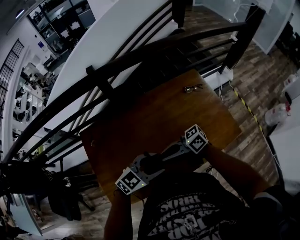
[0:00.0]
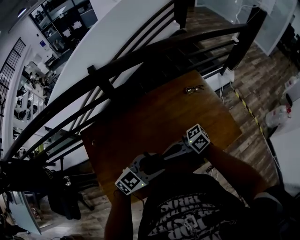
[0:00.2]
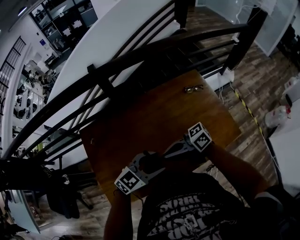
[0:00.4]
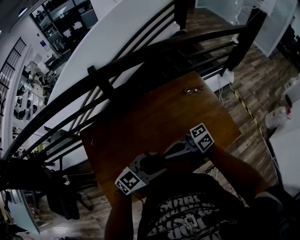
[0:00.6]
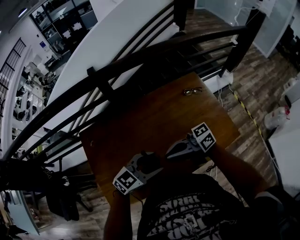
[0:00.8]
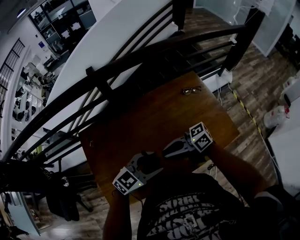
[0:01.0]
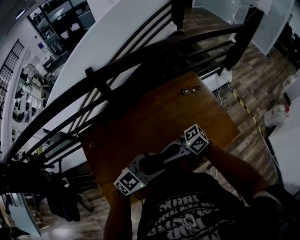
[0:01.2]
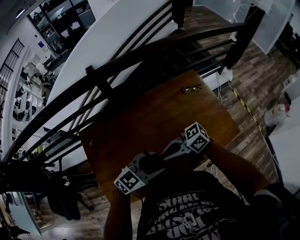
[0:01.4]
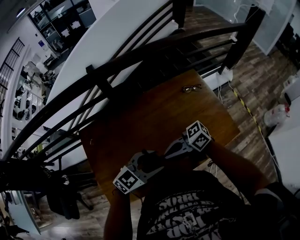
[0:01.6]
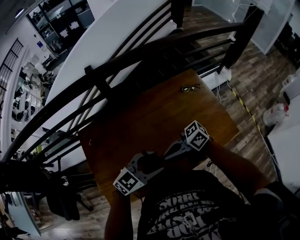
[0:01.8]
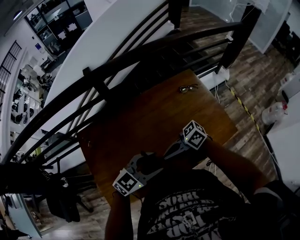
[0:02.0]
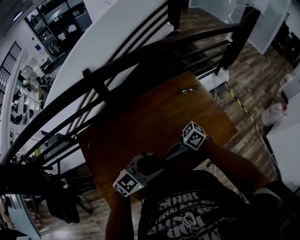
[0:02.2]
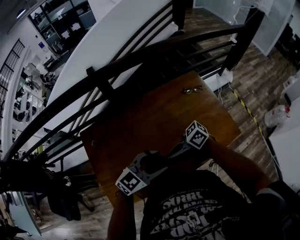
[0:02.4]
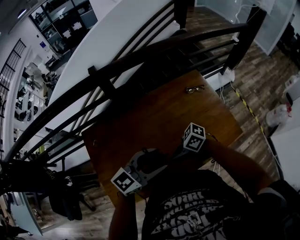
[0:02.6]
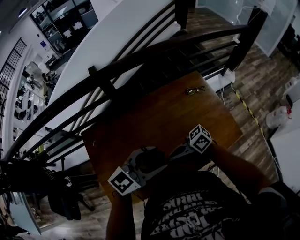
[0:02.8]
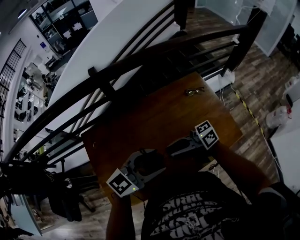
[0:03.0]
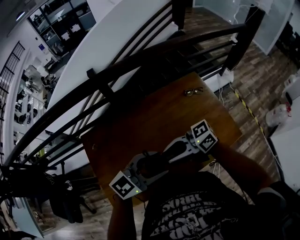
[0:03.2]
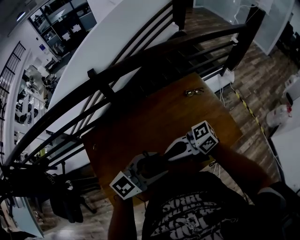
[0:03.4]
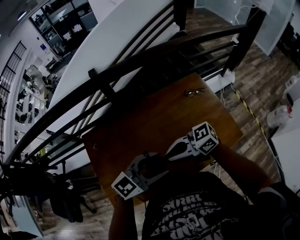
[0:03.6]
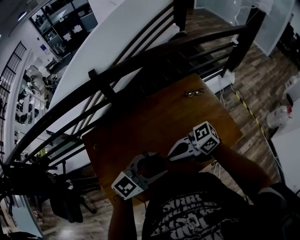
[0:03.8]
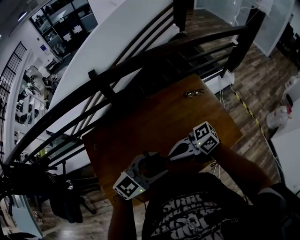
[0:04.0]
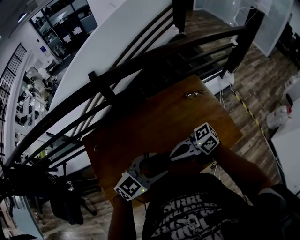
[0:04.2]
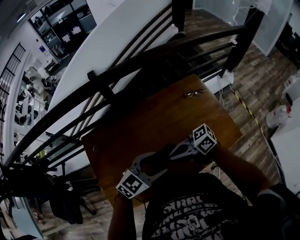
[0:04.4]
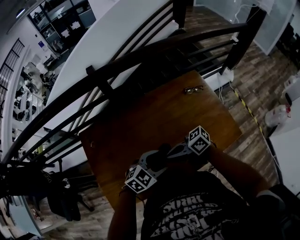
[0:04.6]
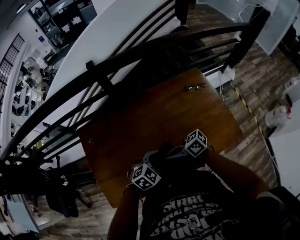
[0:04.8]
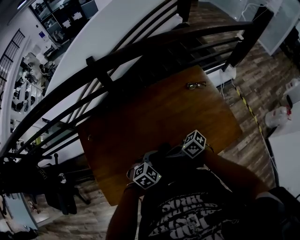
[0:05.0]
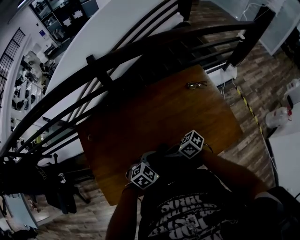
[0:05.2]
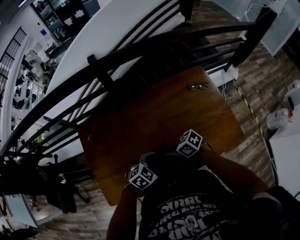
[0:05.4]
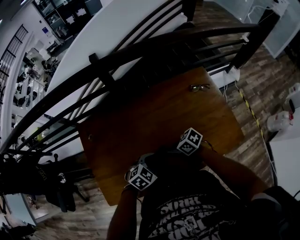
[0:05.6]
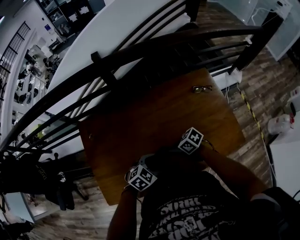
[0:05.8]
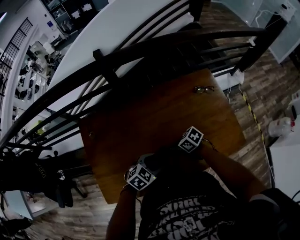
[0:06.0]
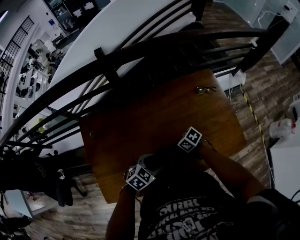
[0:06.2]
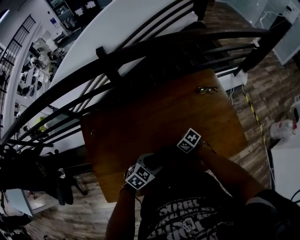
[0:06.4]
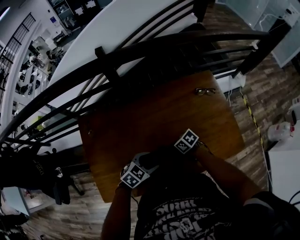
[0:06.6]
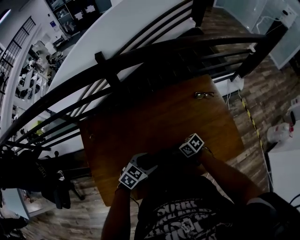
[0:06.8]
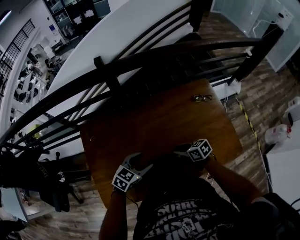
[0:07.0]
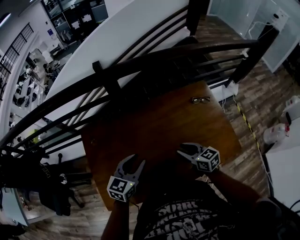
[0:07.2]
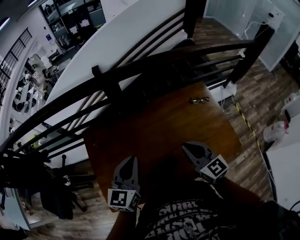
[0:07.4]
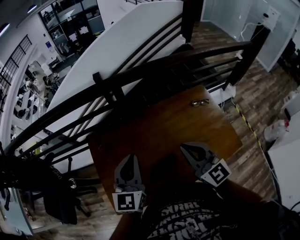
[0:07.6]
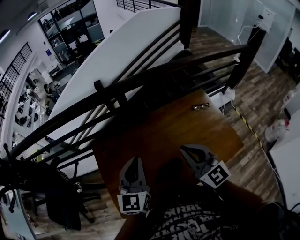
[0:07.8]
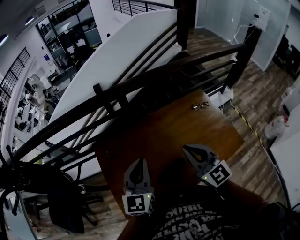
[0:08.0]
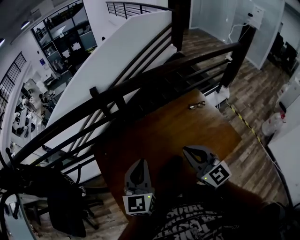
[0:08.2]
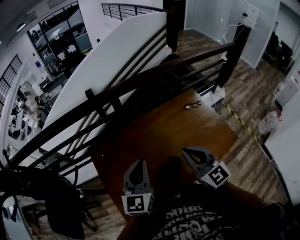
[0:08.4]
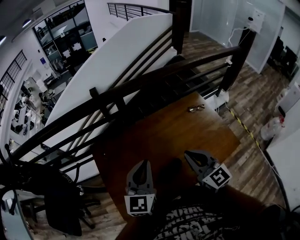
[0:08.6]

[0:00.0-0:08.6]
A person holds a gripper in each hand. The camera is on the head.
0:01.4 to 0:02.8: The left gripper moves upward, about 10 cm.
0:02.8 to 0:04.4: The left gripper moves downward, approximately 10 cm. Meanwhile the right gripper goes upward and returns, approximately 10 cm each way, and opens, then closes again.
0:04.4 to 0:05.8: The grippers both shift downward by roughly 15 cm. The left gripper swivels about 30 degrees. Meanwhile the right gripper tilts its fingers roughly 30 degrees downward.
0:05.8 to 0:07.2: Both grippers move upward, some 10 cm. The right gripper changes its angle by about 40 degrees, and opens, while the left gripper turns by about 40 degrees.
0:07.2 to 0:08.6: The grippers both shift upward by roughly 15 cm. The left gripper rotates approximately 20 degrees, and closes its fingers, while the right gripper swivels some 40 degrees, and closes its fingers.

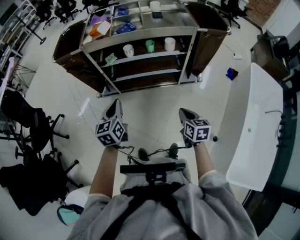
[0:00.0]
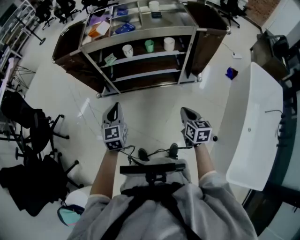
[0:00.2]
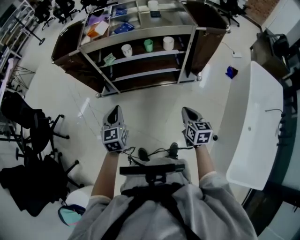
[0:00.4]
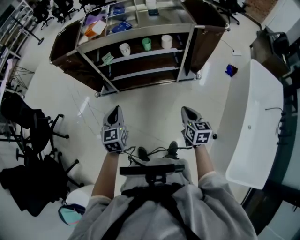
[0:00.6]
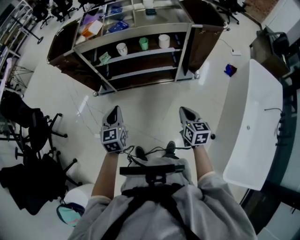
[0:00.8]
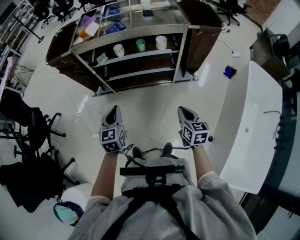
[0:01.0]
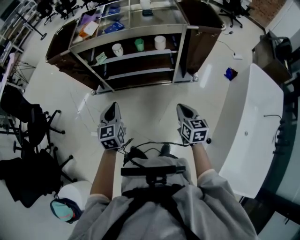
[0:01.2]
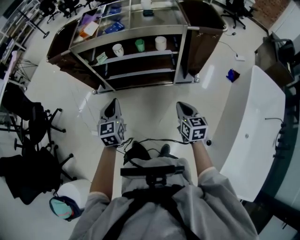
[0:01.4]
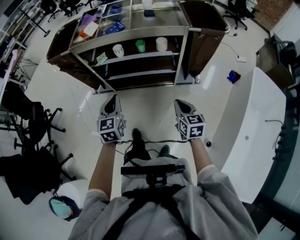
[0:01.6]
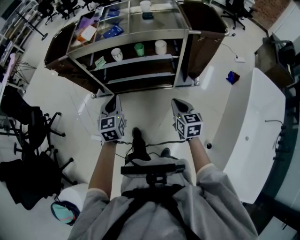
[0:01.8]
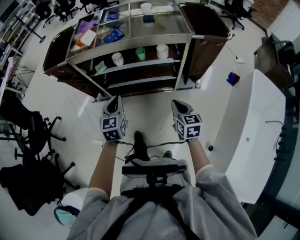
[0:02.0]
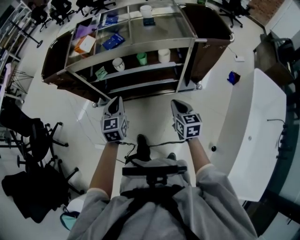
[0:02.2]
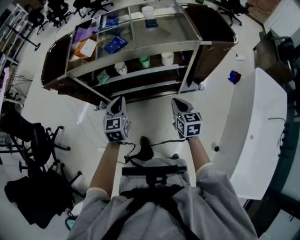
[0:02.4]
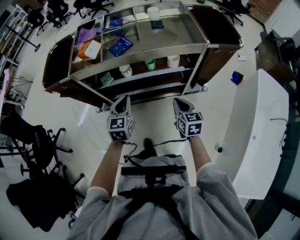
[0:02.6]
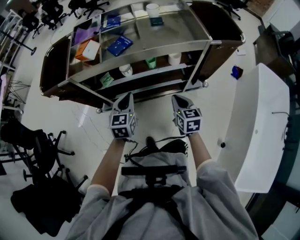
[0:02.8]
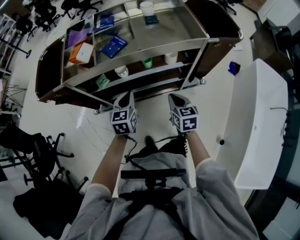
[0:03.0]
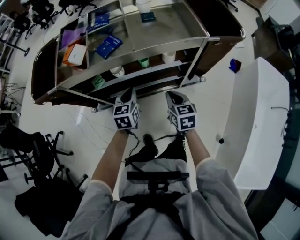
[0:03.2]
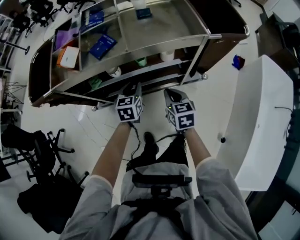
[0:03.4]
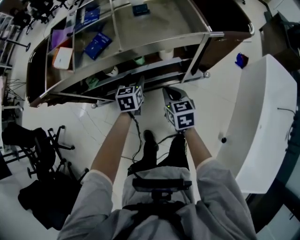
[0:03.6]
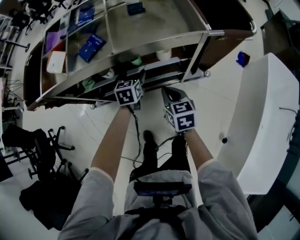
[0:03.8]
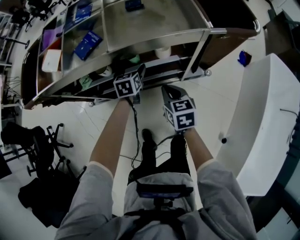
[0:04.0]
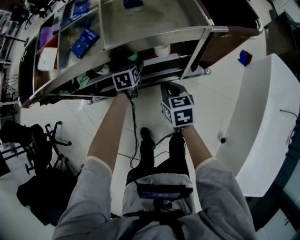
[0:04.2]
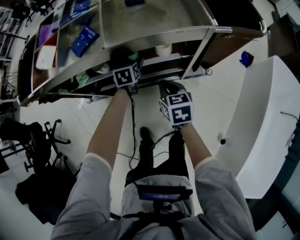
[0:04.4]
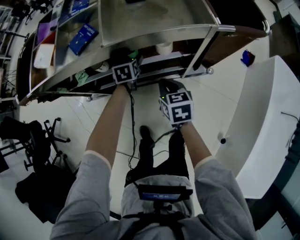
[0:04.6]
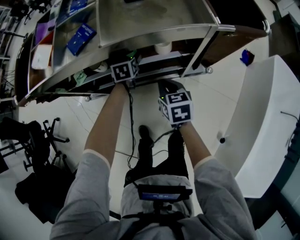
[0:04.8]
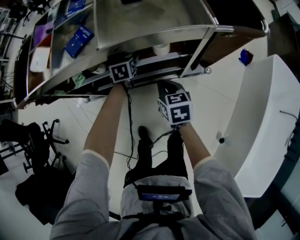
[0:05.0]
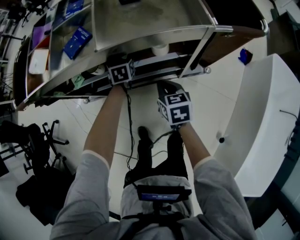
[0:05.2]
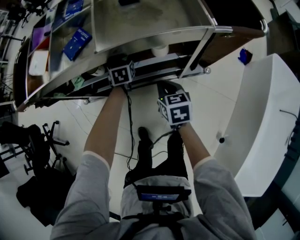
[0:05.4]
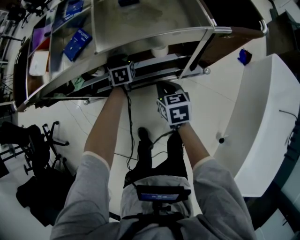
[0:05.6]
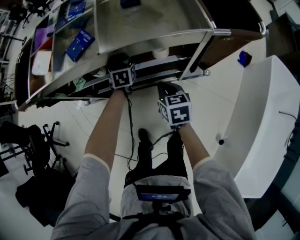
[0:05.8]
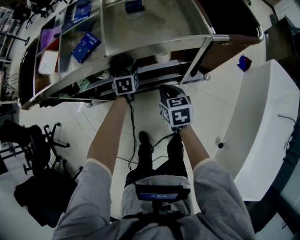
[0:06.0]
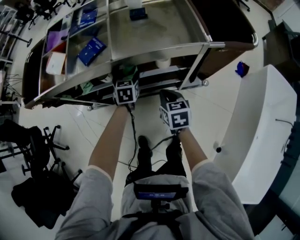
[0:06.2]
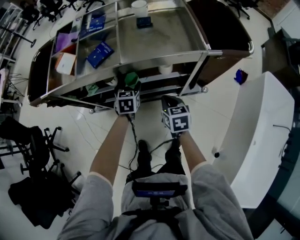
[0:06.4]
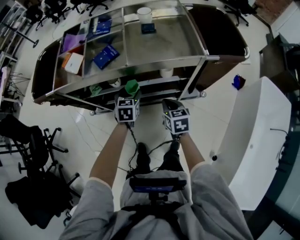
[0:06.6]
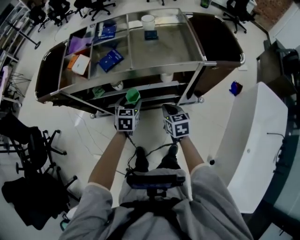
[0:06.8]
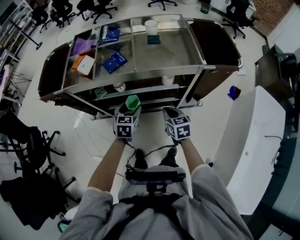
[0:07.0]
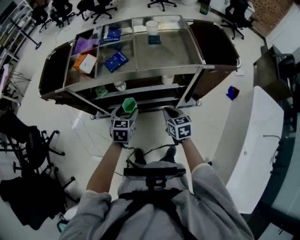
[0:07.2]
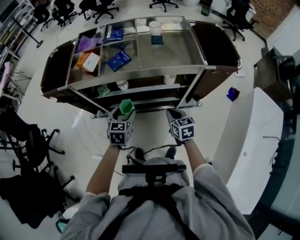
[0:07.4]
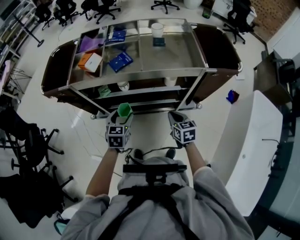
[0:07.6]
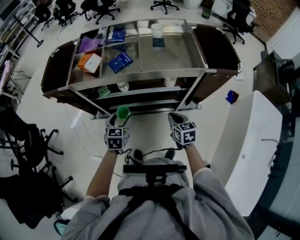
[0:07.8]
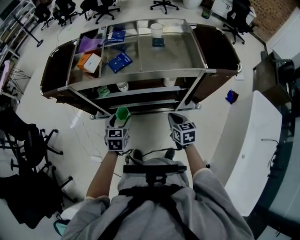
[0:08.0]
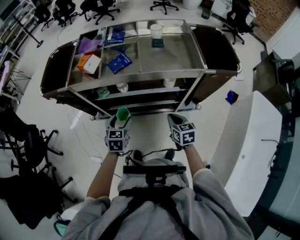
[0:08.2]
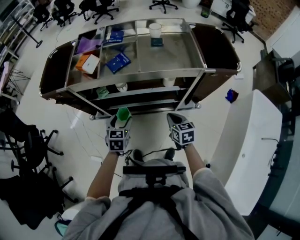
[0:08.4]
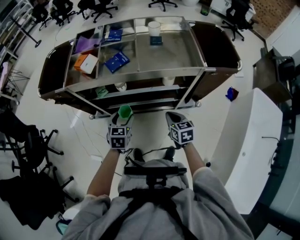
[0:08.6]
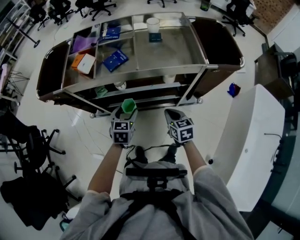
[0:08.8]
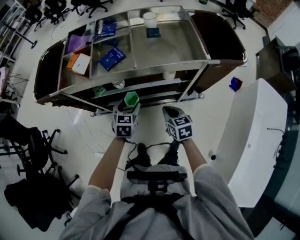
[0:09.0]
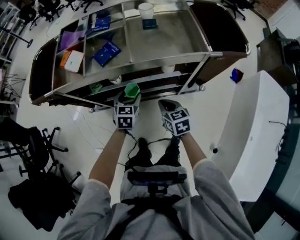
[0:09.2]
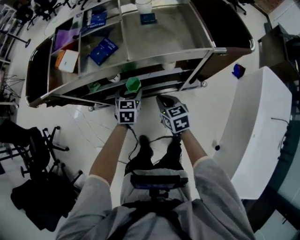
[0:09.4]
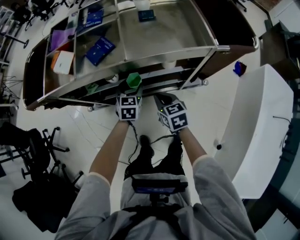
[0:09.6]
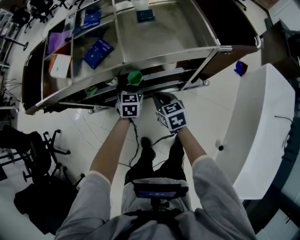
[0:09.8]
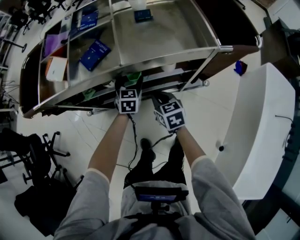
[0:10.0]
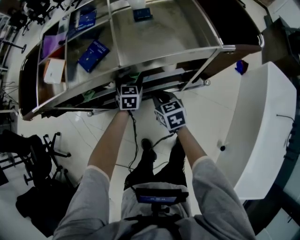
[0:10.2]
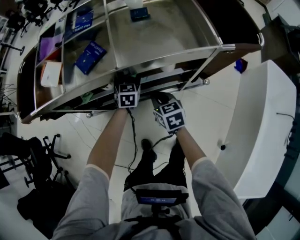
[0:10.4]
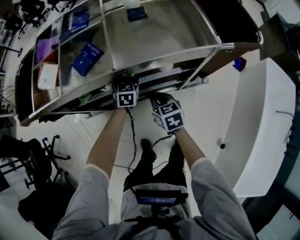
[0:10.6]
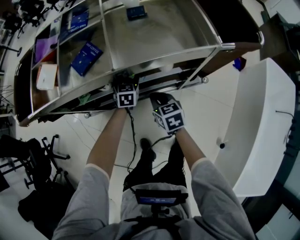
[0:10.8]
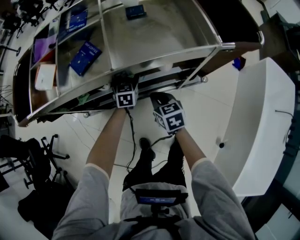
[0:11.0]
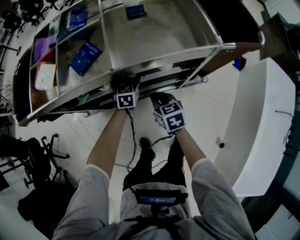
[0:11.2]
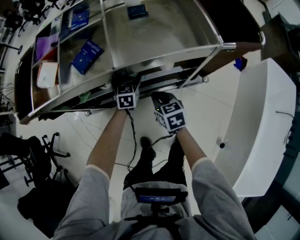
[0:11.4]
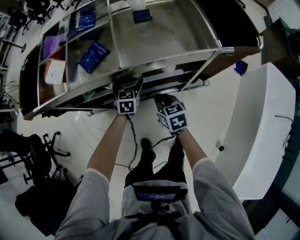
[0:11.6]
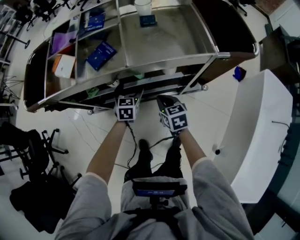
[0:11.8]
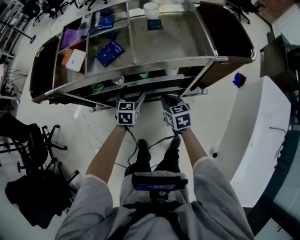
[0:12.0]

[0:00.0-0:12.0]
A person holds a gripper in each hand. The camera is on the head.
0:00.0 to 0:01.6: The right gripper shifts about 10 cm to the right and forward; the left gripper heads to the right, covering roughly 10 cm.
0:01.6 to 0:03.0: The right gripper travels forward and to the left by some 25 cm. Meanwhile the left gripper heads forward, covering roughly 25 cm.
0:03.0 to 0:04.4: The right gripper travels forward, downward and to the right by approximately 15 cm; the left gripper goes some 30 cm forward, downward and to the right, and opens.
0:04.4 to 0:06.0: The grippers move only a little.
0:06.0 to 0:07.6: The right gripper heads backward and upward, covering about 10 cm; the left gripper is displaced backward, upward and to the left by roughly 30 cm.
0:07.6 to 0:09.0: The left gripper is displaced forward and to the right by roughly 10 cm.
0:09.0 to 0:10.4: The left gripper shifts approximately 20 cm forward, downward and to the right. Meanwhile the right gripper is displaced forward and downward by some 10 cm.
0:10.4 to 0:12.0: The right gripper shifts about 5 cm upward; the left gripper heads backward and upward, covering about 15 cm.

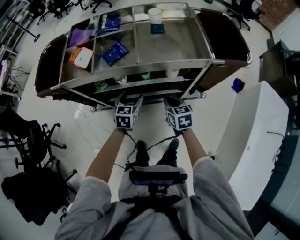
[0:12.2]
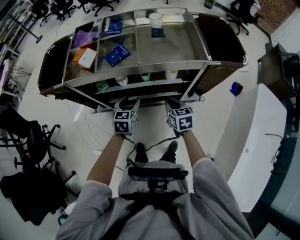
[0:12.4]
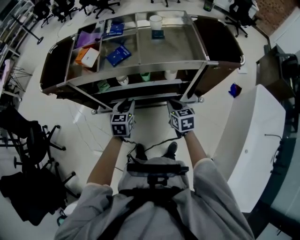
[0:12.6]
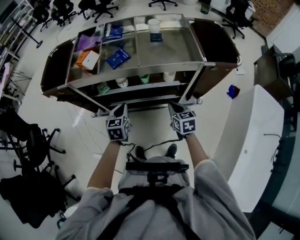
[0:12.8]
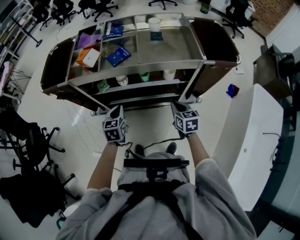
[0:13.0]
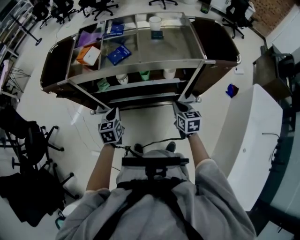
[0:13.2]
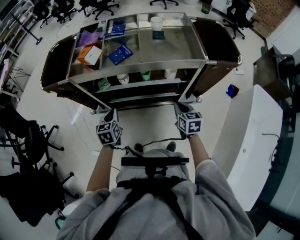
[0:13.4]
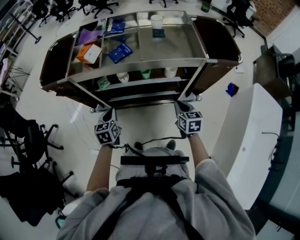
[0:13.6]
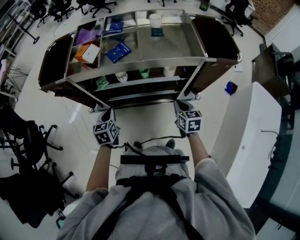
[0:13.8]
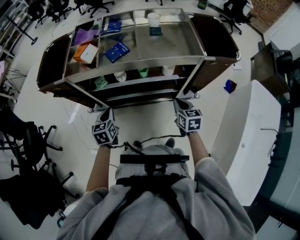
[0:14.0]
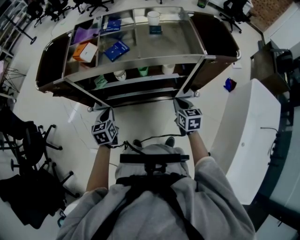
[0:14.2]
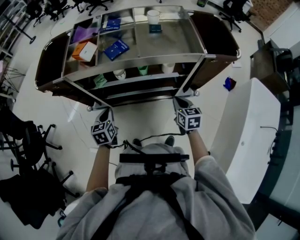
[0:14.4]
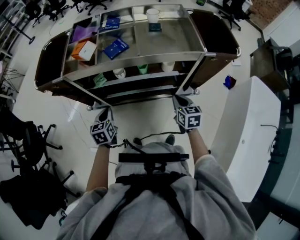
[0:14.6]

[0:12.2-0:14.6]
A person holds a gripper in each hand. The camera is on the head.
0:12.2 to 0:13.4: The right gripper shifts approximately 5 cm backward. The left gripper shifts some 15 cm to the left and backward, and closes.
0:13.4 to 0:14.6: The grippers stay close to where they were, moving slightly.
